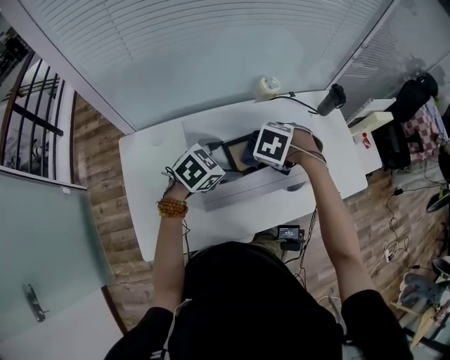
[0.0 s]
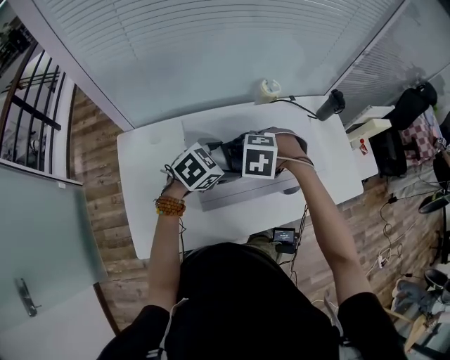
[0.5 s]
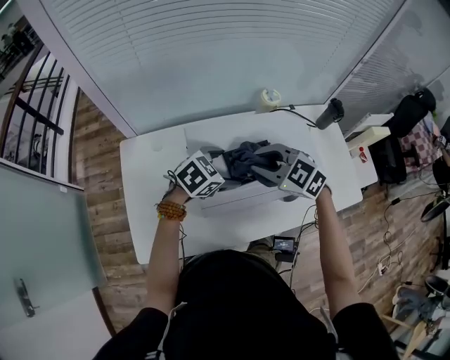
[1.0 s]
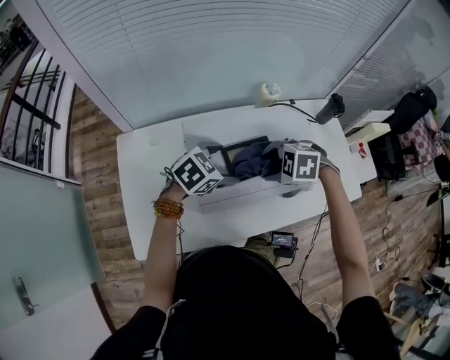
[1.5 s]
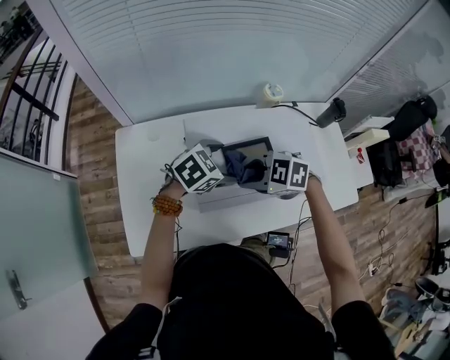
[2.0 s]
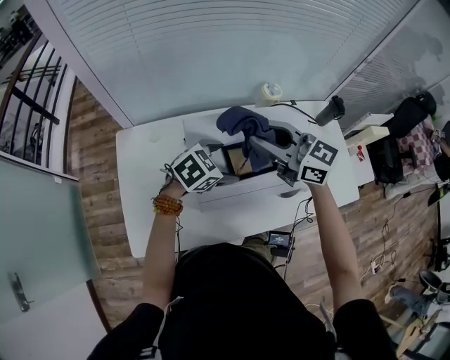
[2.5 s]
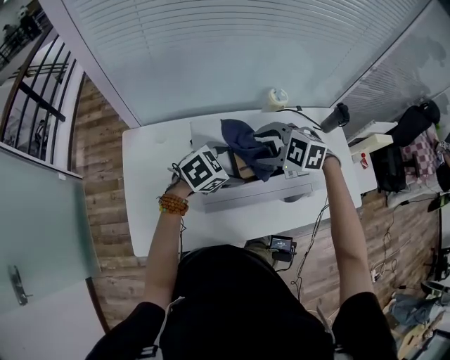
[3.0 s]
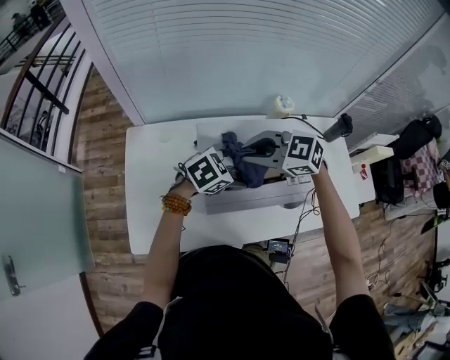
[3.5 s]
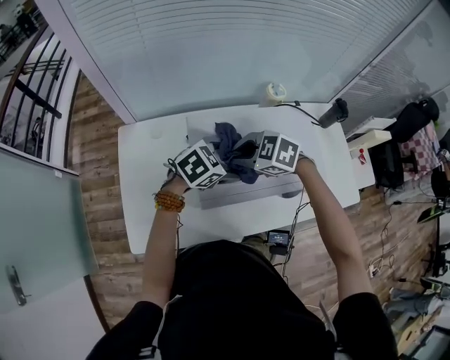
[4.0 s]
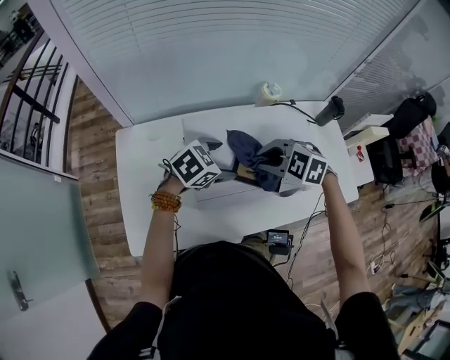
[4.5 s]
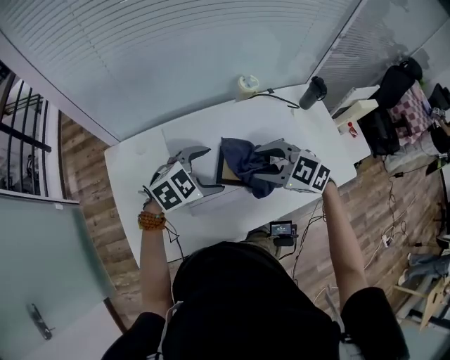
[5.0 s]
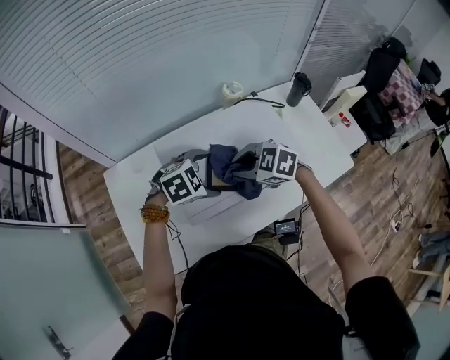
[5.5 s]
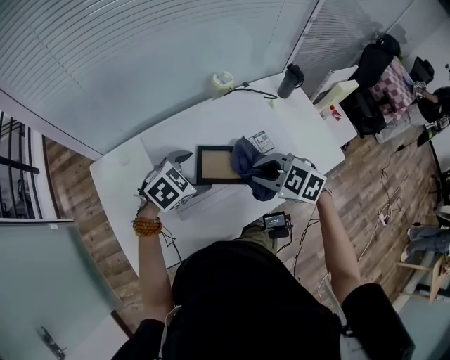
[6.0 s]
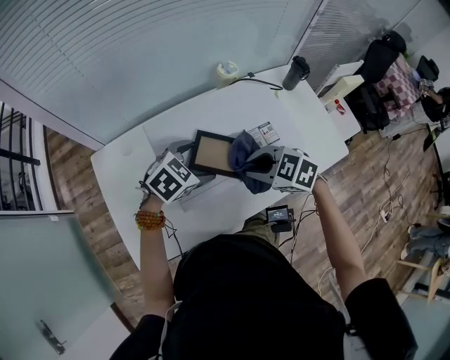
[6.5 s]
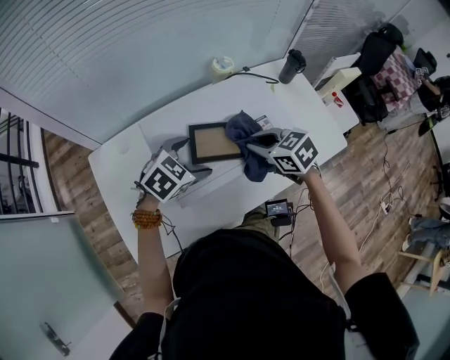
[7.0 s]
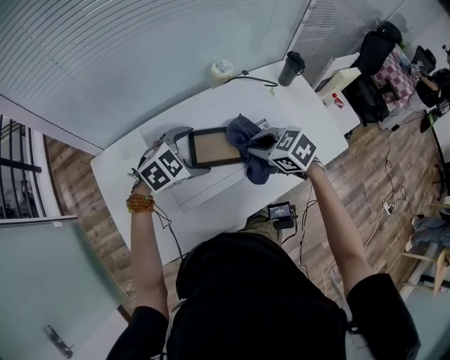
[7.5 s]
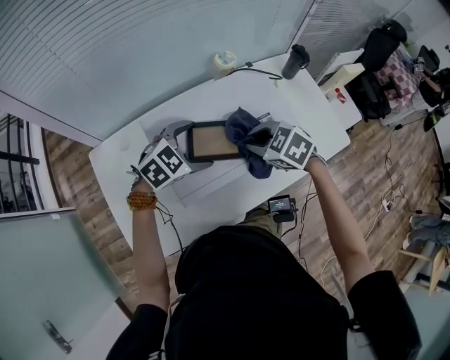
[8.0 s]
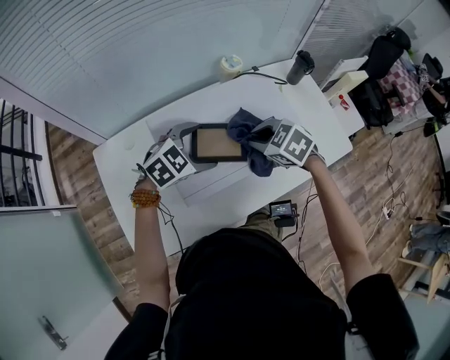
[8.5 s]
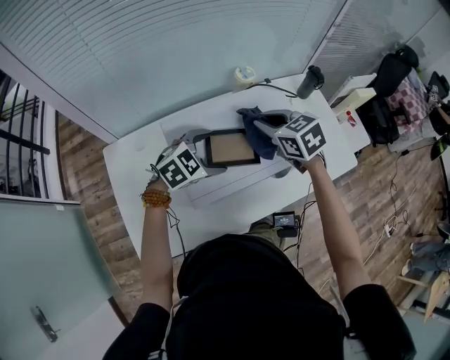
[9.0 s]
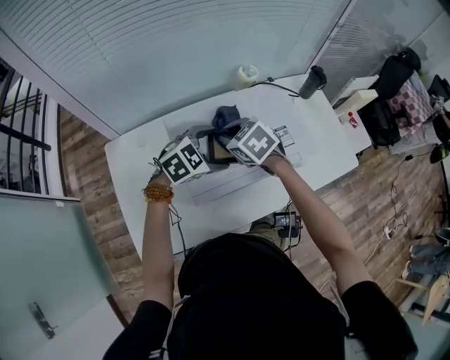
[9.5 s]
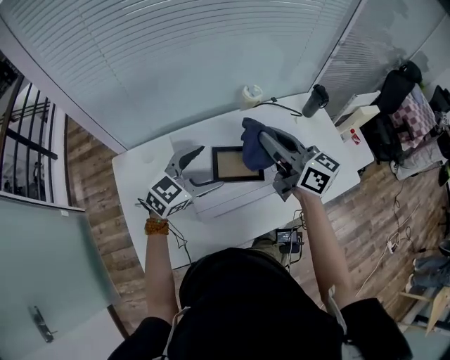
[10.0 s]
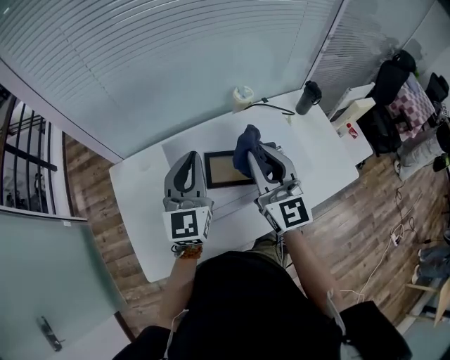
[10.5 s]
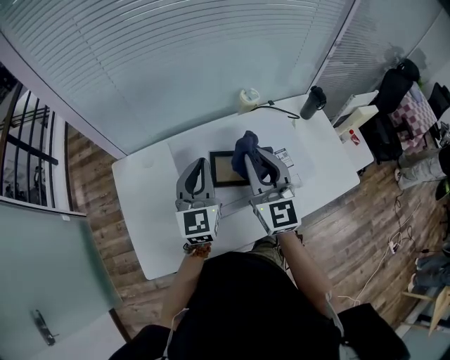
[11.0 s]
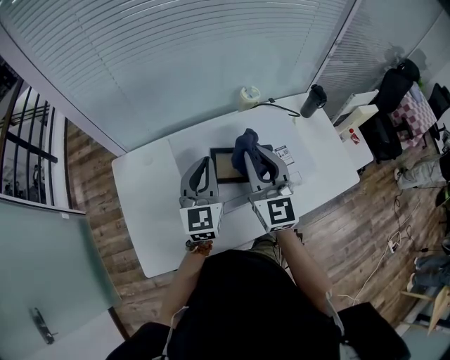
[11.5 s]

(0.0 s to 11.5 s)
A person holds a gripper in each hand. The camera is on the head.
0.0 s - 2.0 s: The right gripper moves about 10 cm, tips its fingers upward by approximately 30 degrees, and opens and closes again.
2.0 s - 4.0 s: The right gripper moves roughly 15 cm upward and comes back, and opens, then closes again.
4.0 s - 6.0 s: The right gripper changes place by roughly 15 cm, rotates approximately 20 degrees, and opens, then closes again.
6.0 s - 7.5 s: The right gripper moves approximately 5 cm.
7.5 s - 9.5 s: The right gripper moves some 15 cm.
9.5 s - 11.5 s: The right gripper goes about 15 cm upward and to the right, and tilts its fingers roughly 50 degrees upward. The left gripper shifts some 10 cm upward and to the left, points its fingers approximately 40 degrees further upward, and closes.

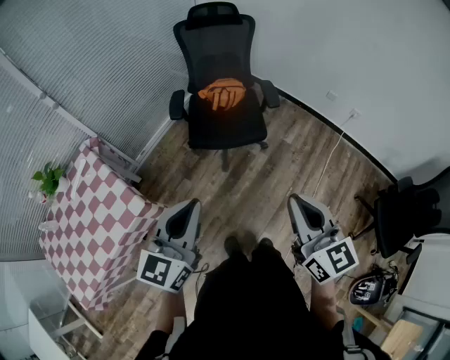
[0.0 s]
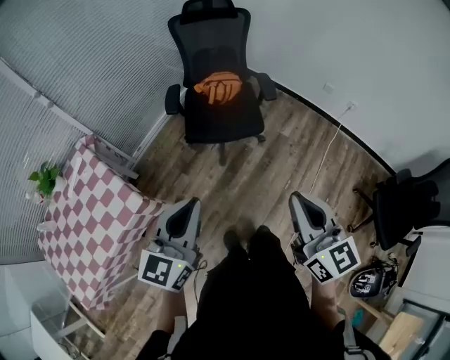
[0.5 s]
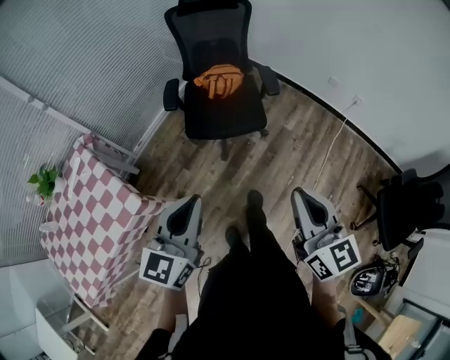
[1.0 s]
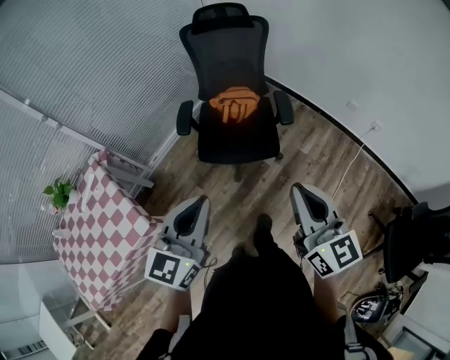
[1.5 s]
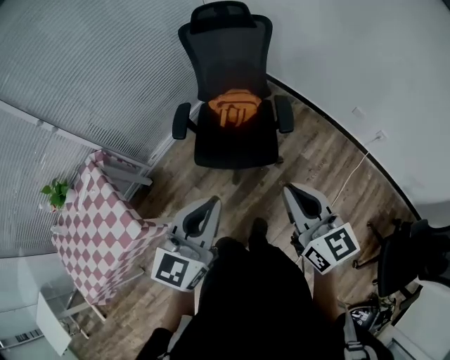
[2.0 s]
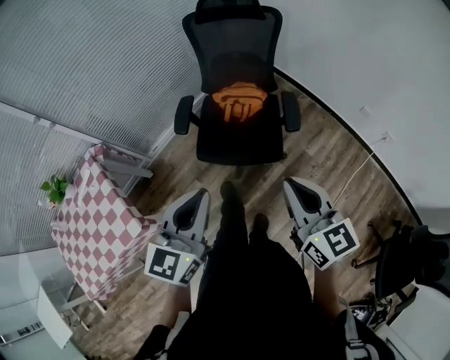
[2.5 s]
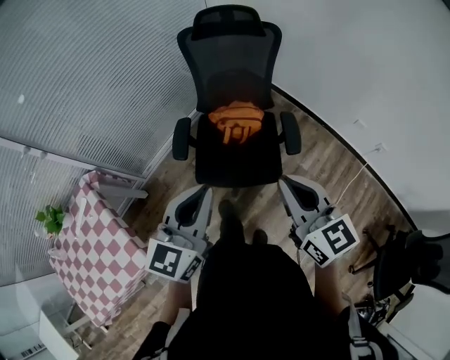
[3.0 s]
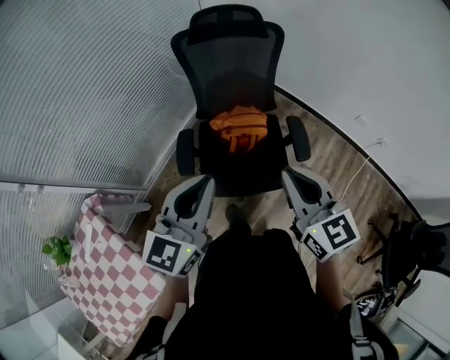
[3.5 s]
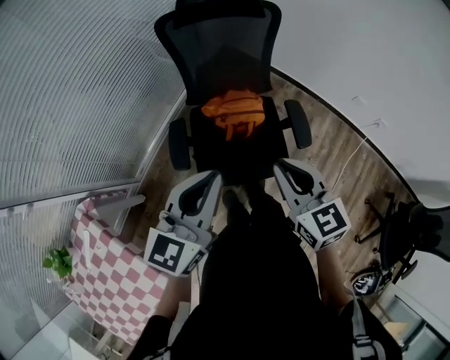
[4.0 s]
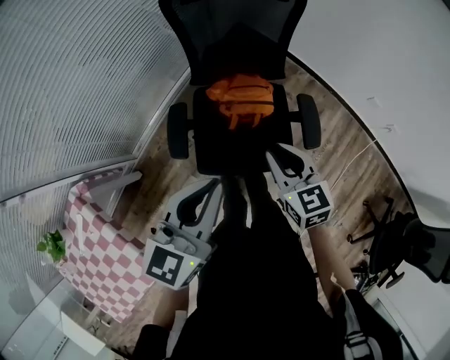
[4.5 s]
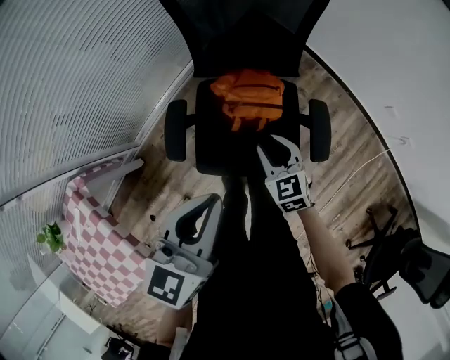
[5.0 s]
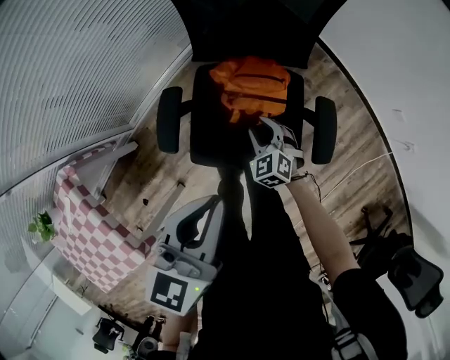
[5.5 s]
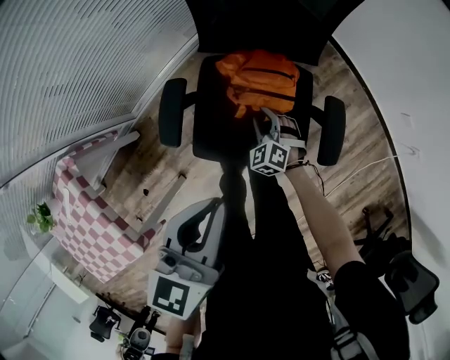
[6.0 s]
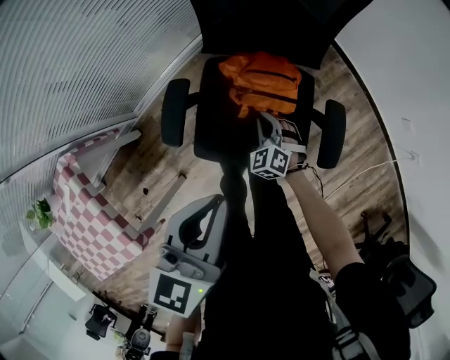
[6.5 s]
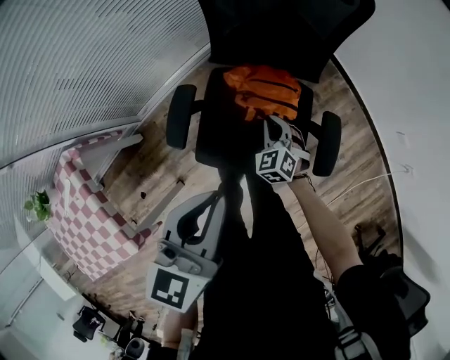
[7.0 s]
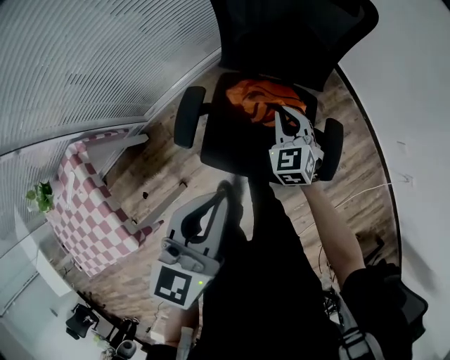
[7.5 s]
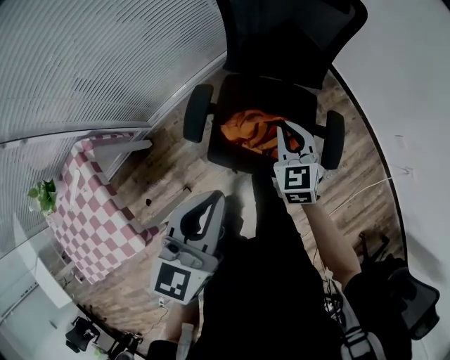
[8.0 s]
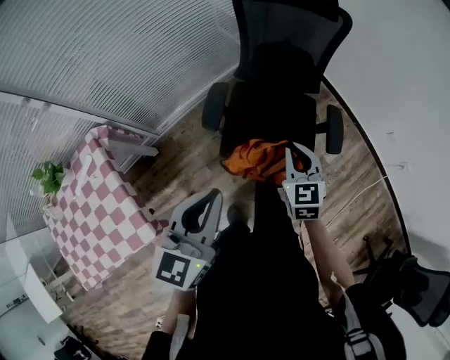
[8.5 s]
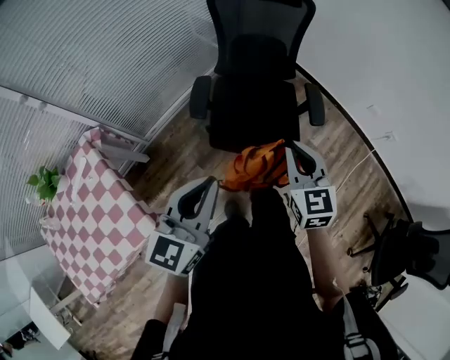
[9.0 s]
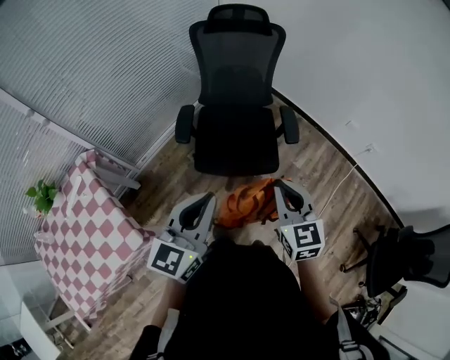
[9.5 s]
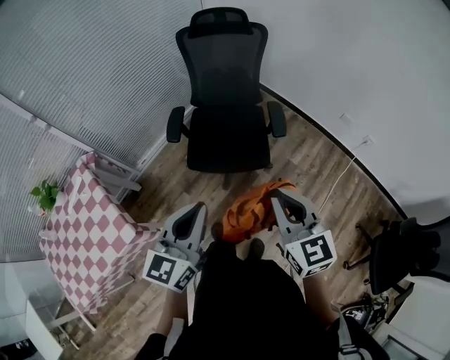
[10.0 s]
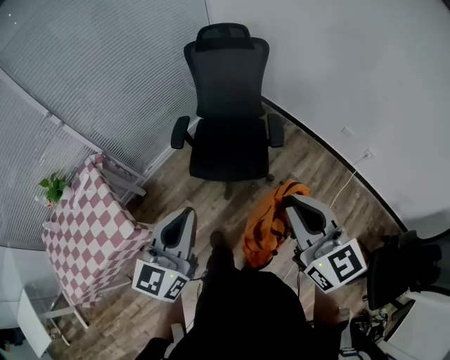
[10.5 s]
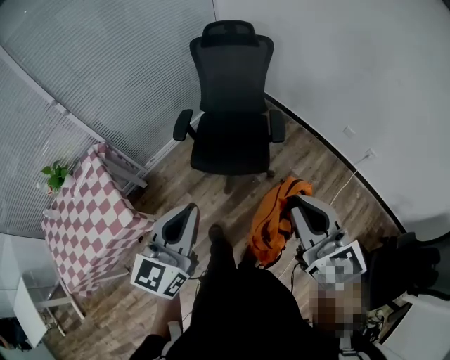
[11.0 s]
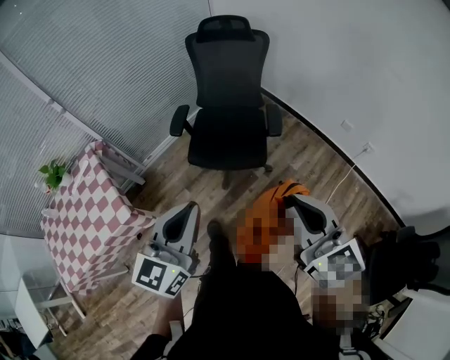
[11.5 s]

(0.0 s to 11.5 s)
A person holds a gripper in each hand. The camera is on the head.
0.0 s - 2.0 s: The left gripper heads forward and to the right, covering about 25 cm. The right gripper moves forward, approximately 25 cm.
2.0 s - 4.0 s: Both grippers move forward and to the left, some 35 cm. The right gripper swivels about 20 degrees.
4.0 s - 6.0 s: The right gripper travels downward and forward by some 50 cm, rolls counterclockwise, seen from behind, by approximately 50 degrees, and opens. Meanwhile the left gripper shifts roughly 15 cm downward and forward, and turns by some 30 degrees.
6.0 s - 7.5 s: The right gripper goes some 20 cm upward, swivels approximately 20 degrees, and closes.
7.5 s - 9.5 s: The right gripper moves backward and upward, about 50 cm, and changes its angle by some 30 degrees. Meanwhile the left gripper is displaced backward by some 35 cm, and rotates roughly 20 degrees.
9.5 s - 11.5 s: The left gripper moves backward, to the right and upward, roughly 20 cm; the right gripper moves backward, upward and to the right, approximately 25 cm, and rotates about 20 degrees.

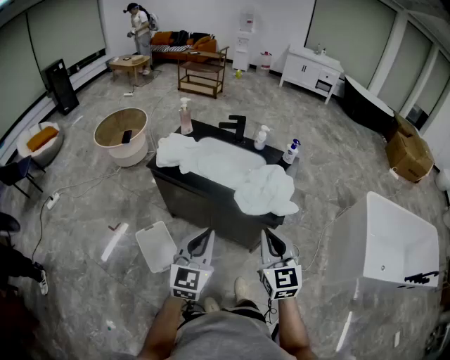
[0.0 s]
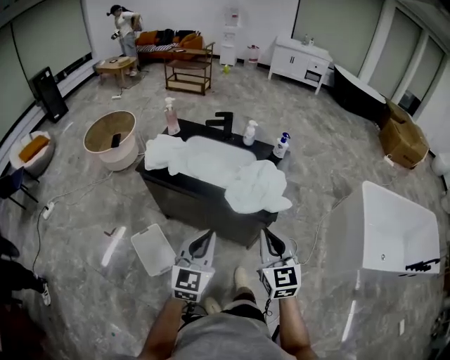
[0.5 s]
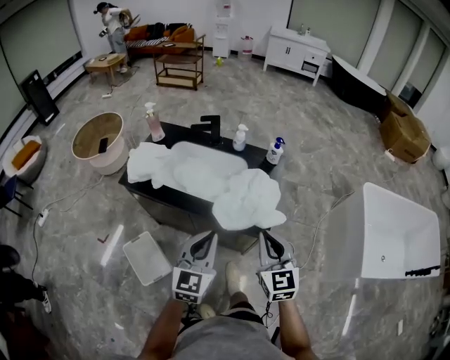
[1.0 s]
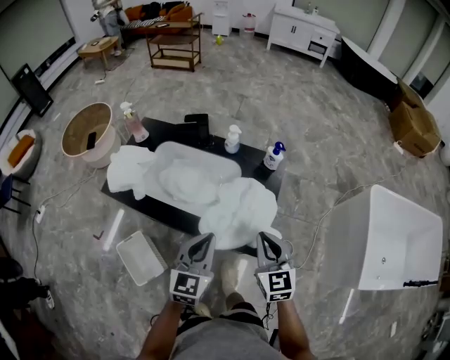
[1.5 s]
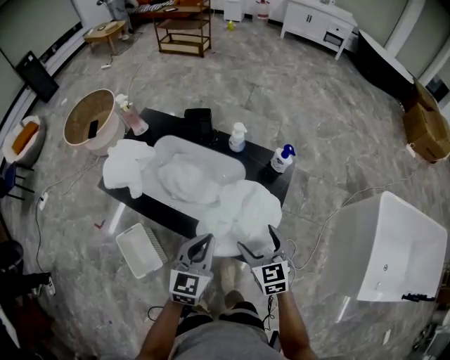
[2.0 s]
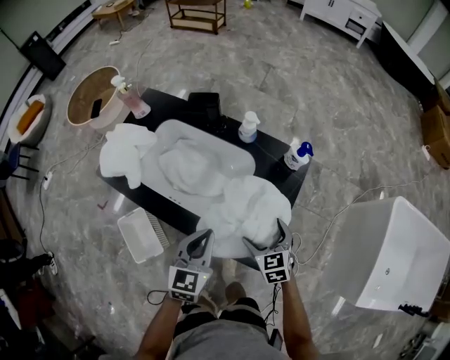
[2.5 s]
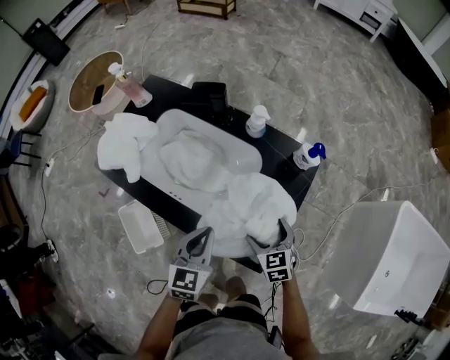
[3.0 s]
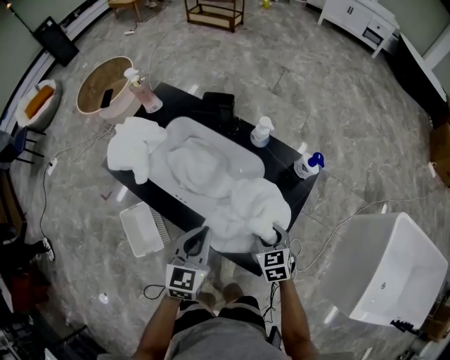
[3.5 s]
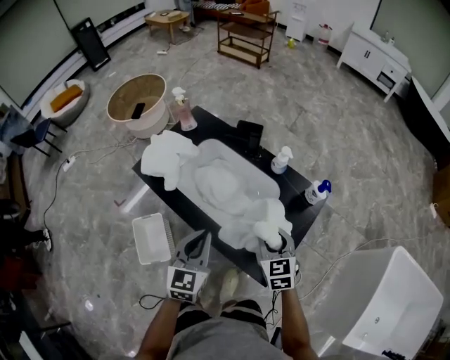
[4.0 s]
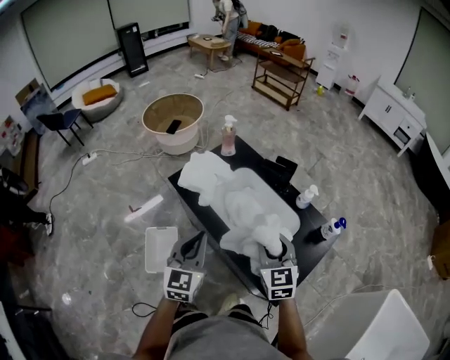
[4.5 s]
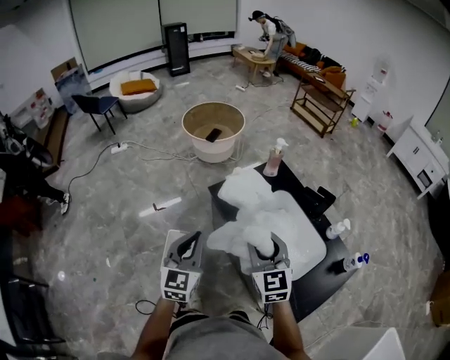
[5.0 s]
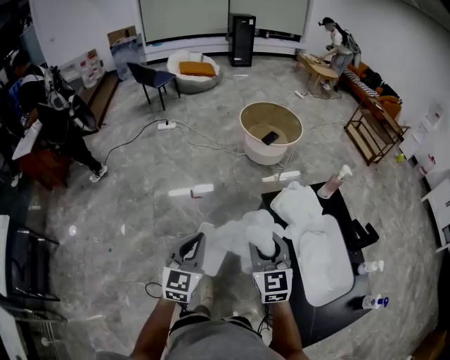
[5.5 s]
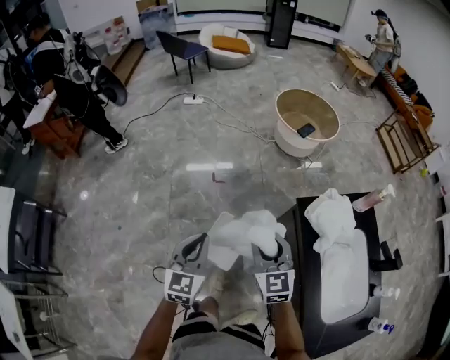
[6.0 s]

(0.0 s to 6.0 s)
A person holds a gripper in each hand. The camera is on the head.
0.0 s - 2.0 s: The left gripper shifts roughly 35 cm forward, to the right and downward. The right gripper travels forward and downward by some 40 cm, swivels about 20 degrees, and opens its fingers.
2.0 s - 4.0 s: The left gripper is displaced to the left by approximately 10 cm, and travels downward and back again, some 10 cm each way; the right gripper heads forward, covering about 10 cm, travels downward and back again, roughly 15 cm each way, and closes.
4.0 s - 6.0 s: The pair of grippers is taken some 60 cm. The left gripper changes its angle by some 50 degrees. The right gripper rotates roughly 50 degrees.
